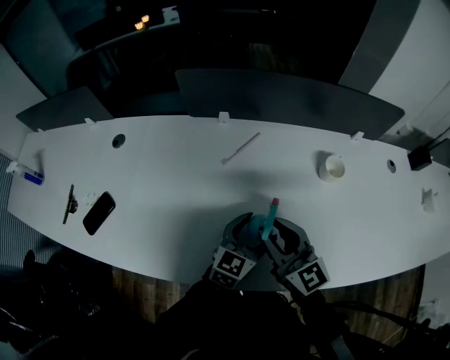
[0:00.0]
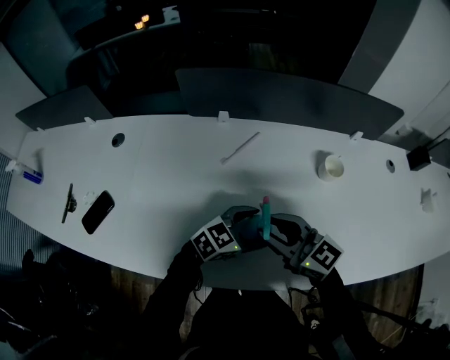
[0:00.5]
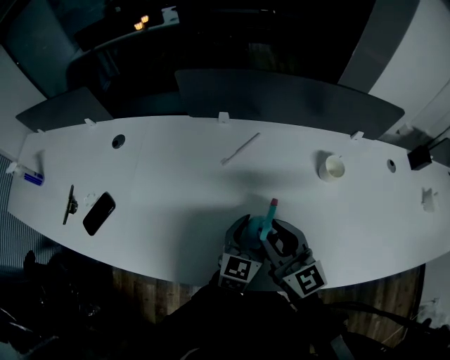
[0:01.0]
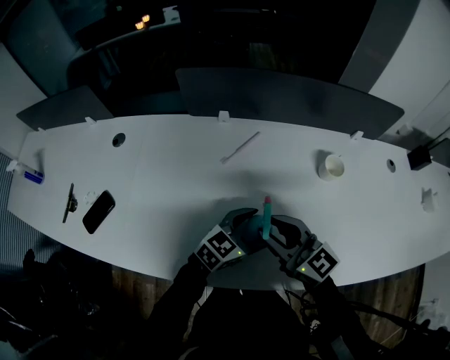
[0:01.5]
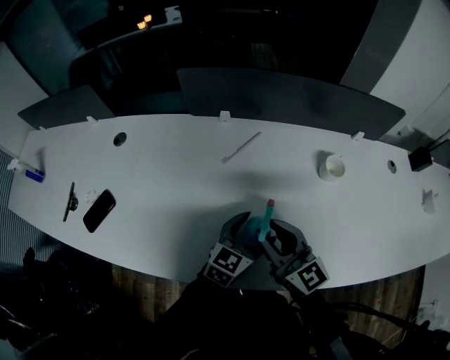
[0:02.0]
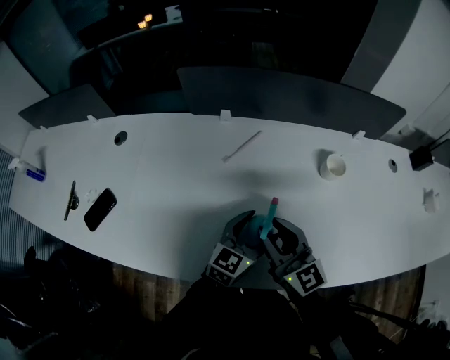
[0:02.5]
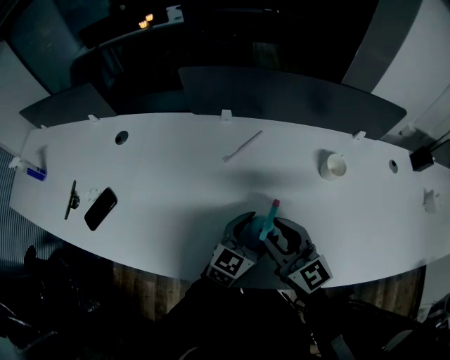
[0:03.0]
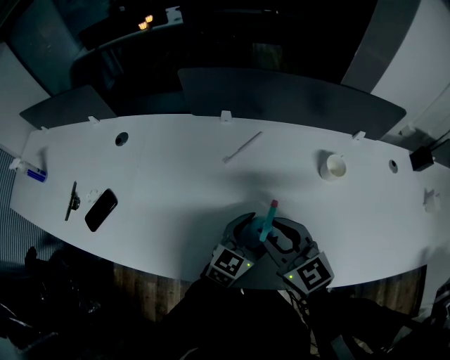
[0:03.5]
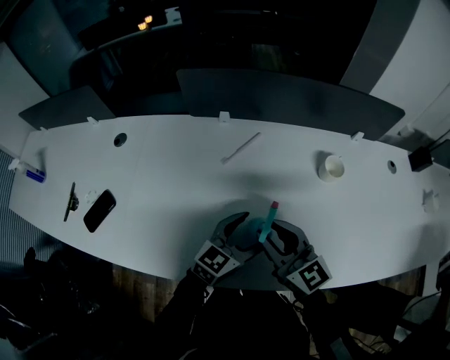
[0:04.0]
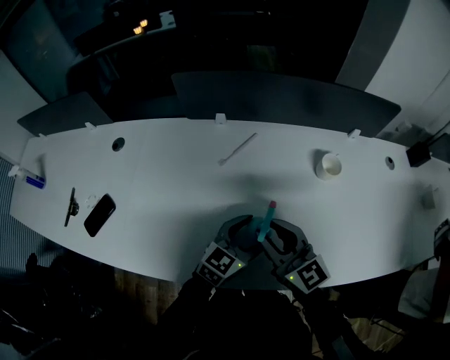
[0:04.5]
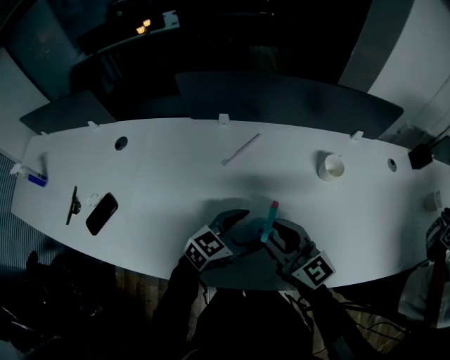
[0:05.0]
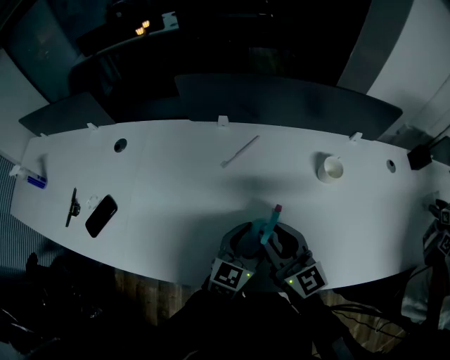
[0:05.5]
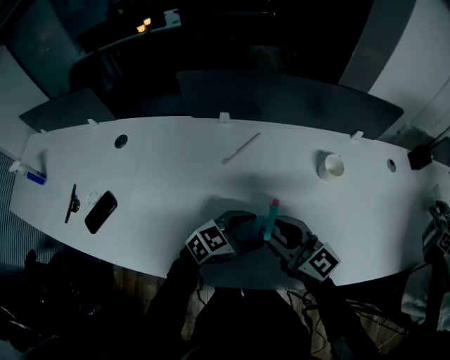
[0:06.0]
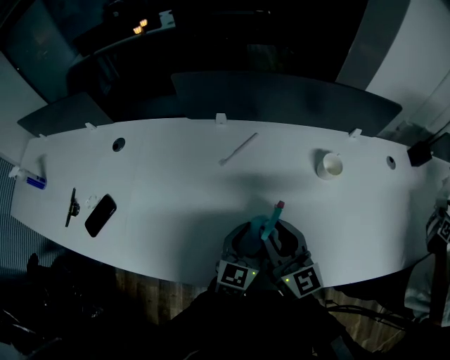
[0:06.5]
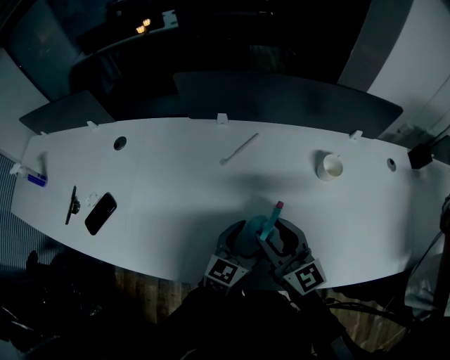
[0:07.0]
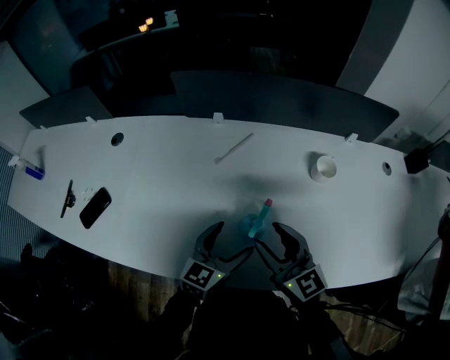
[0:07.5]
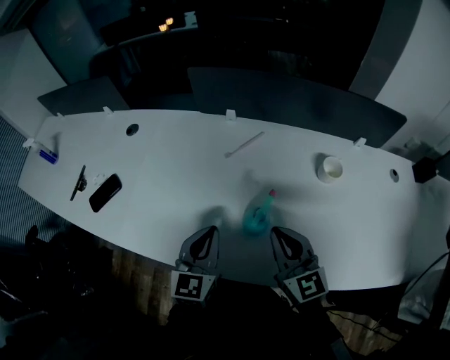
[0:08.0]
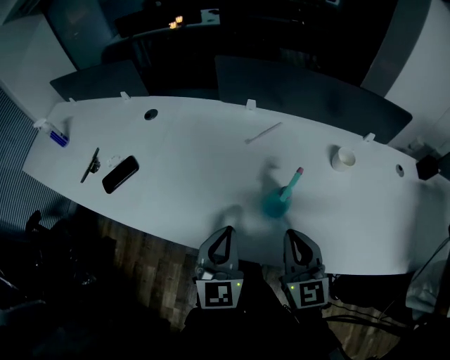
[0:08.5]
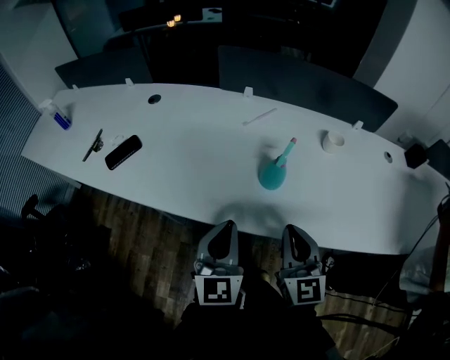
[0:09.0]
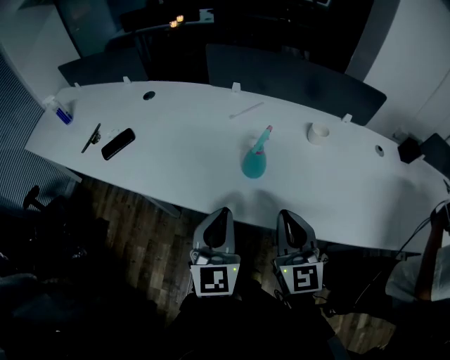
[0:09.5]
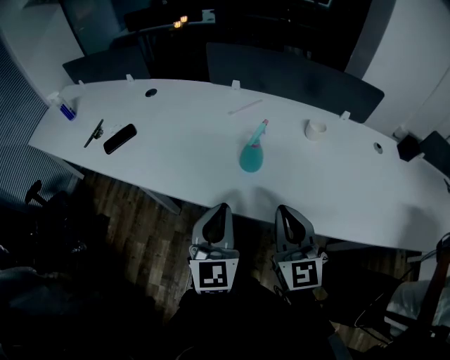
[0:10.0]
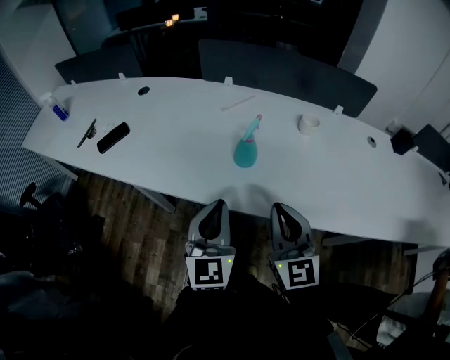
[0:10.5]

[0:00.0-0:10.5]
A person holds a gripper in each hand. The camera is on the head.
0:06.5 to 0:08.5: The left gripper travels to the left, backward and upward by about 20 cm, rotates roughly 30 degrees, and closes; the right gripper moves backward, about 10 cm, and closes up.
0:08.5 to 0:10.5: The left gripper heads backward and to the right, covering roughly 15 cm. Meanwhile the right gripper is displaced backward and upward by roughly 15 cm.

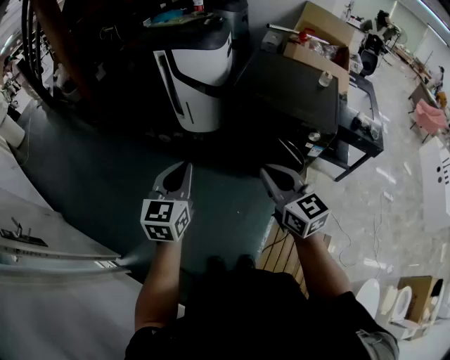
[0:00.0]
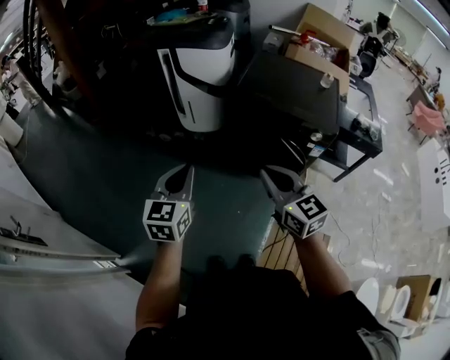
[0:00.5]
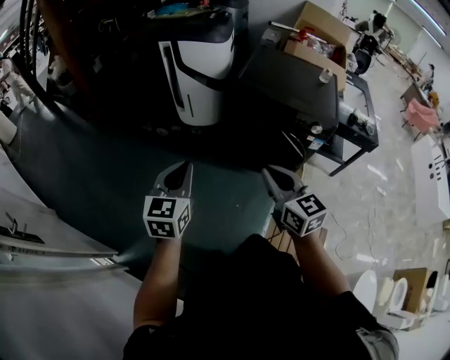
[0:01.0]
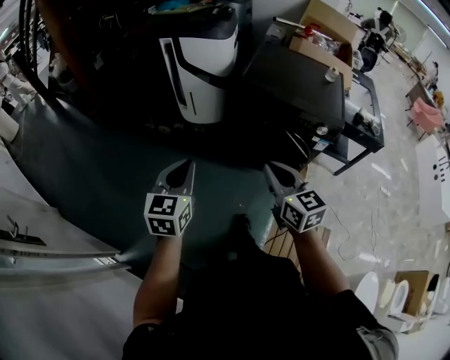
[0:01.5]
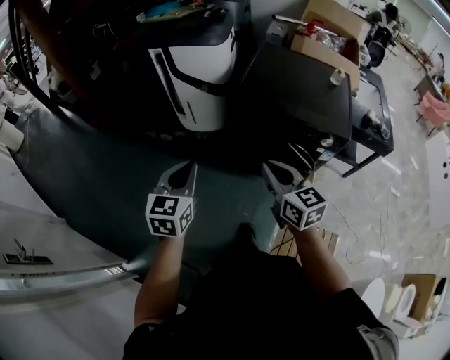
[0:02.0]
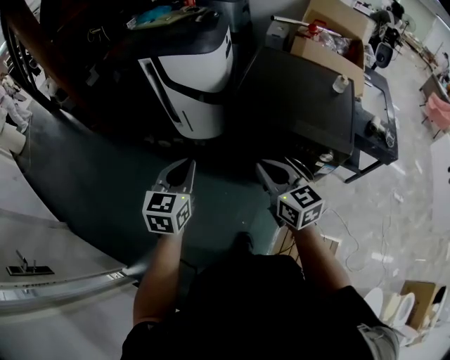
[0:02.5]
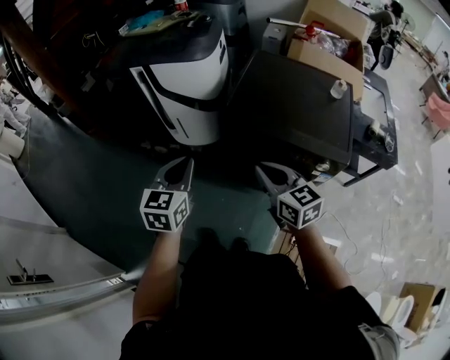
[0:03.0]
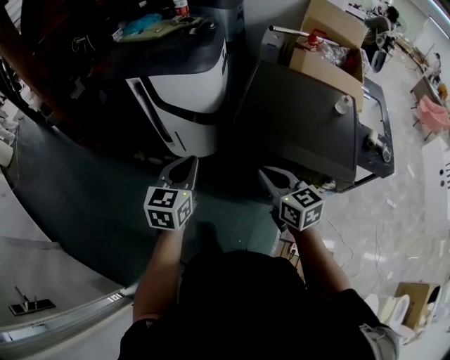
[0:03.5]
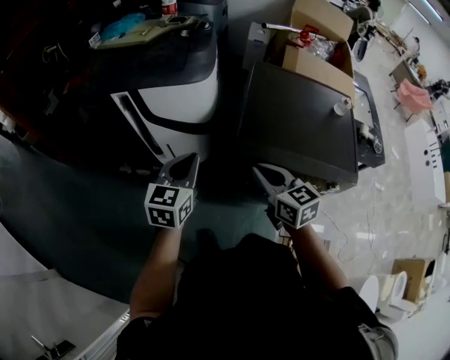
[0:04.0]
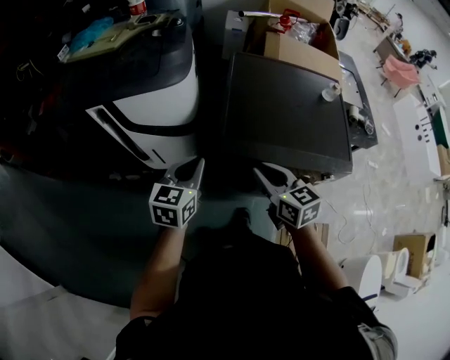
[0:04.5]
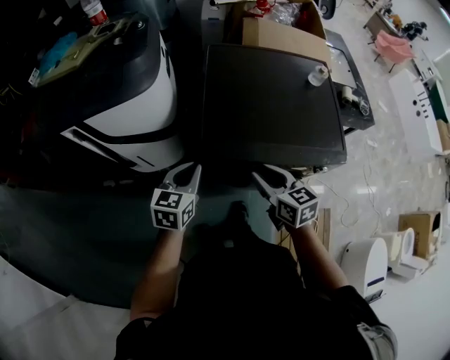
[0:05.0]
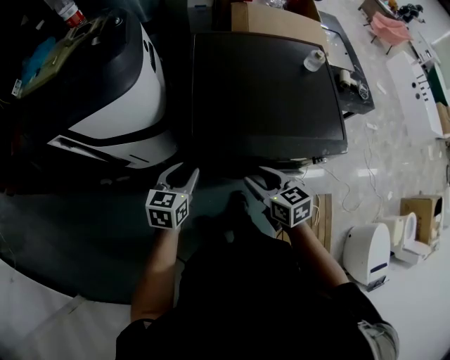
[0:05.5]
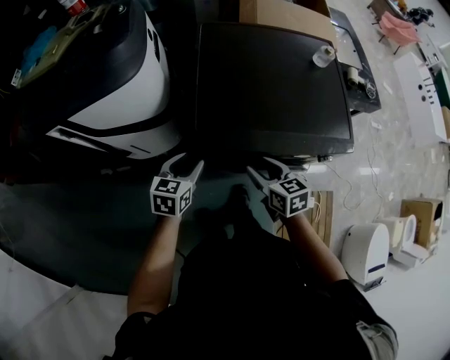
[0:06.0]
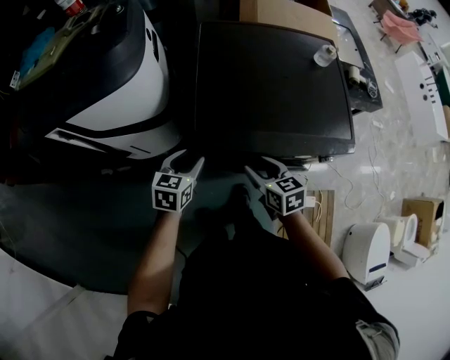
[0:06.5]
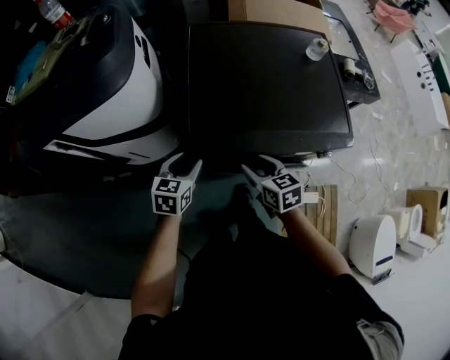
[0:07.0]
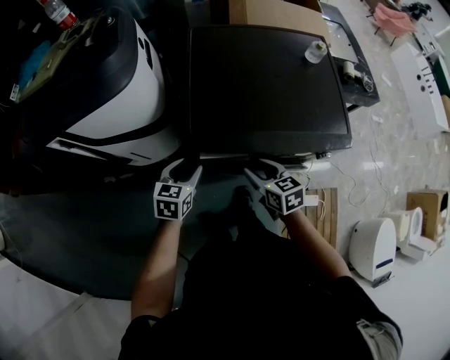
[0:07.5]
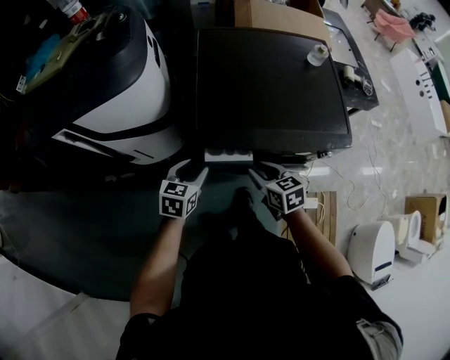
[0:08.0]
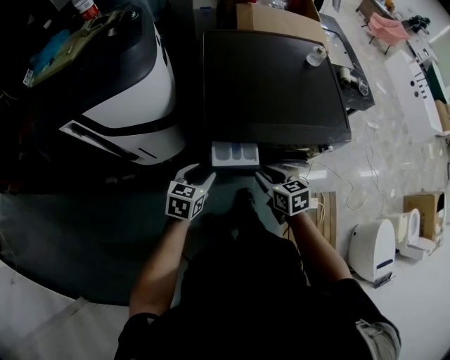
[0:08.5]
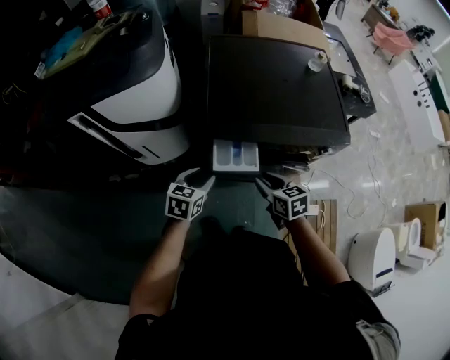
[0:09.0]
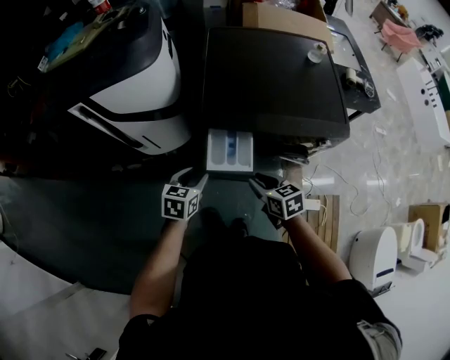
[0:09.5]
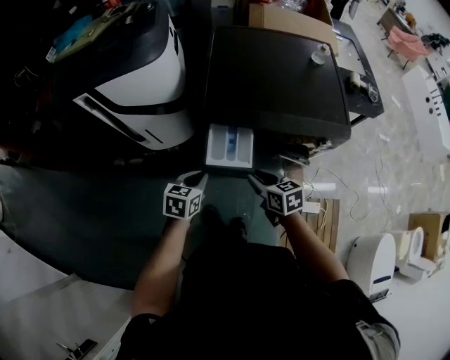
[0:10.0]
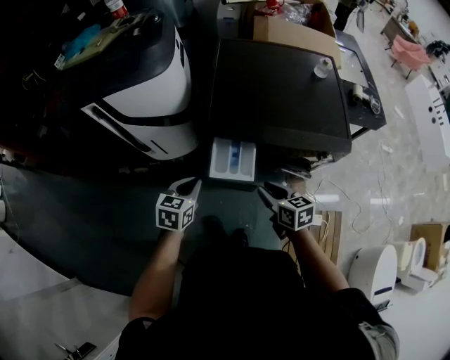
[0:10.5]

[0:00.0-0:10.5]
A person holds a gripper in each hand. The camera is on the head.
0:00.0 to 0:02.0: Both grippers move forward and downward, approximately 15 cm.
0:02.0 to 0:04.0: Both grippers move forward, some 35 cm.
0:04.0 to 0:06.5: The left gripper shifts roughly 25 cm downward, to the right and forward, turns by about 30 degrees, and opens its fingers; the right gripper heads downward and to the right, covering some 25 cm, changes its angle by about 20 degrees, and opens its fingers.
0:06.5 to 0:08.5: The grippers both shift backward by some 5 cm.
0:08.5 to 0:10.5: Both grippers travel together backward, some 10 cm. The left gripper closes its fingers.

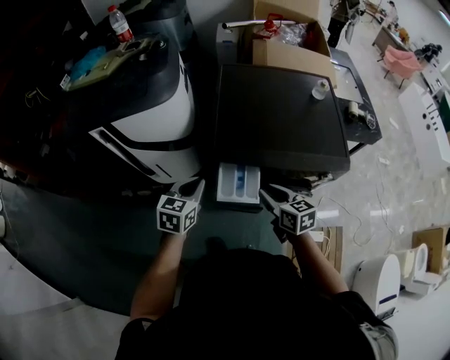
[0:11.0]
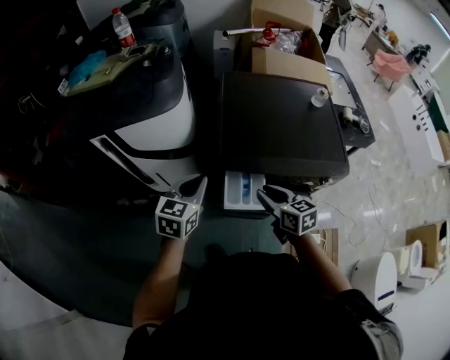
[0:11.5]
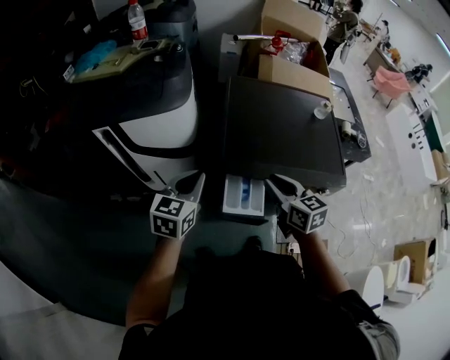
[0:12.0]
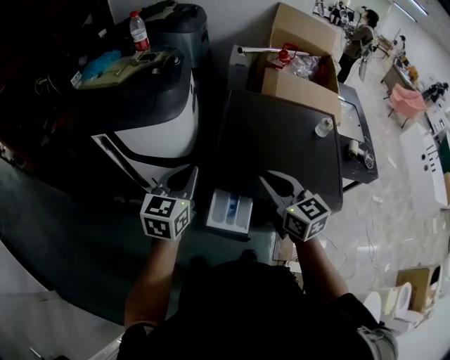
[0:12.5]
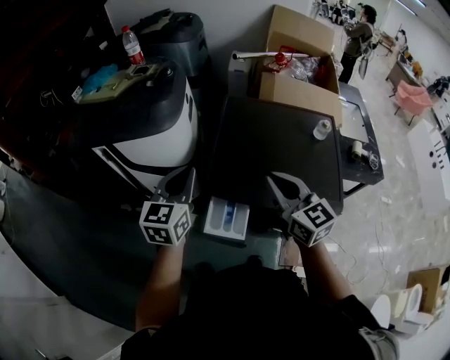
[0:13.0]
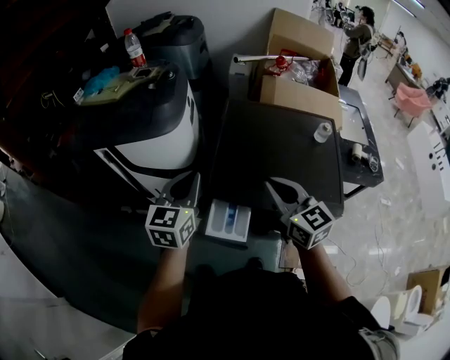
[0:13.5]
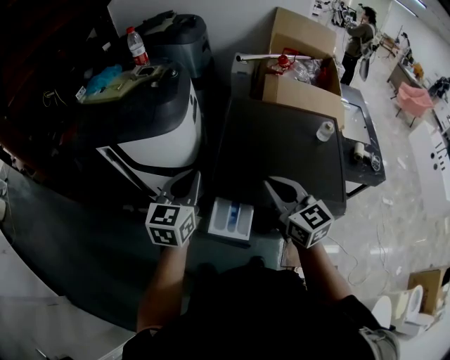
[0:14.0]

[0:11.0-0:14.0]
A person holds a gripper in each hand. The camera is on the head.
0:11.0 to 0:12.5: The two grippers go some 20 cm upward and forward. The right gripper swivels about 20 degrees.
0:12.5 to 0:14.0: The grippers stay close to where they were, moving slightly.

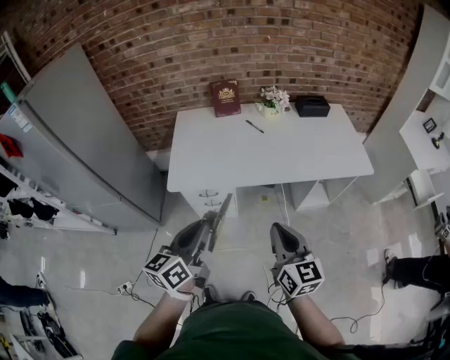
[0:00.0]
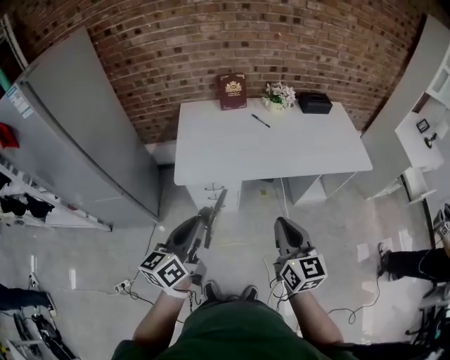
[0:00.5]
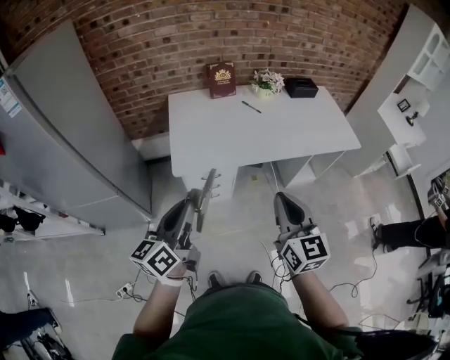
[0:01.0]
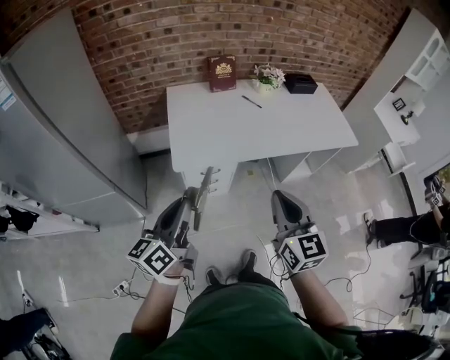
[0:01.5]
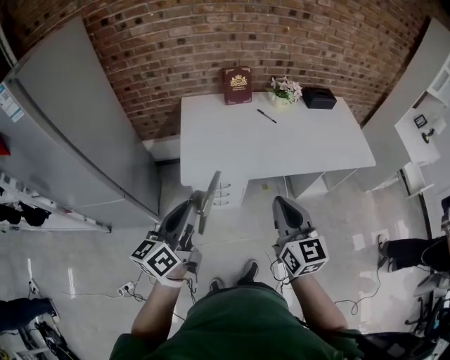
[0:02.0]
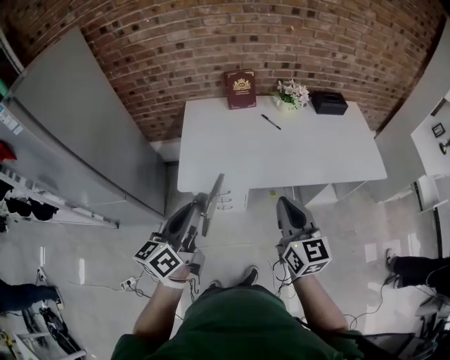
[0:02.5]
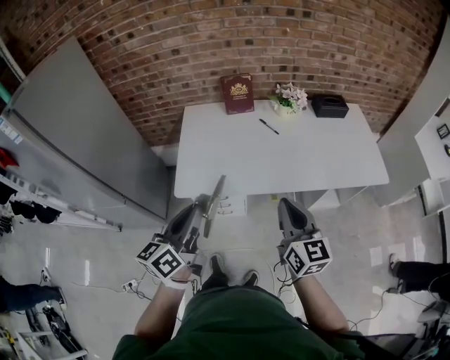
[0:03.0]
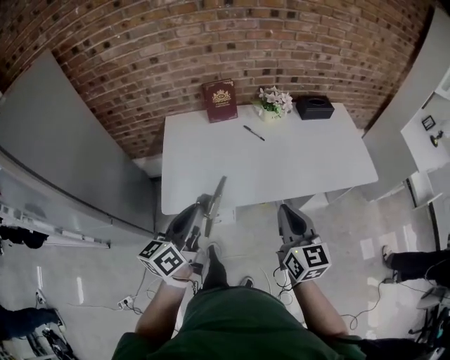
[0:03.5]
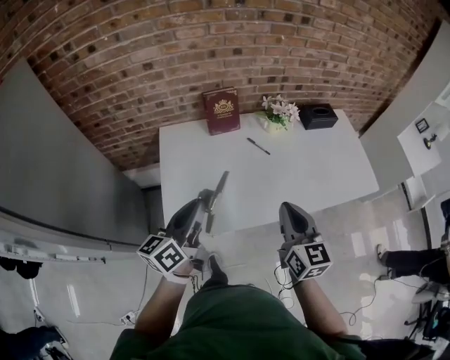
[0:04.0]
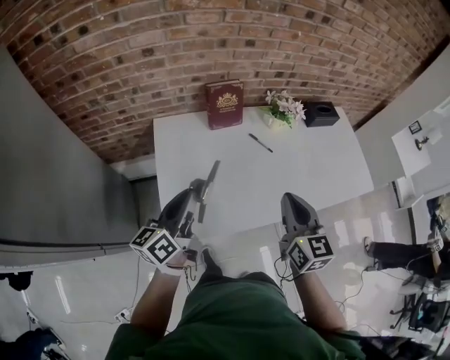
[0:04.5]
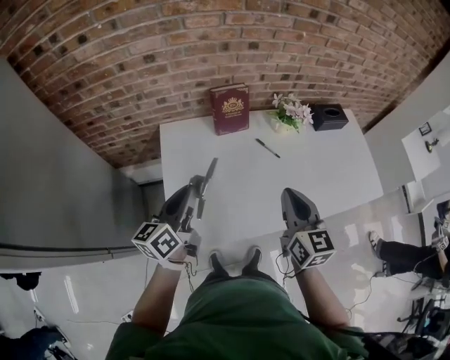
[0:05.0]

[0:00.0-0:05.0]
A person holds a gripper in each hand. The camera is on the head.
0:00.0 to 0:02.5: The right gripper goes approximately 15 cm forward and to the left. The left gripper goes about 15 cm to the left and forward.
0:02.5 to 0:05.0: Both grippers move forward, about 30 cm.
